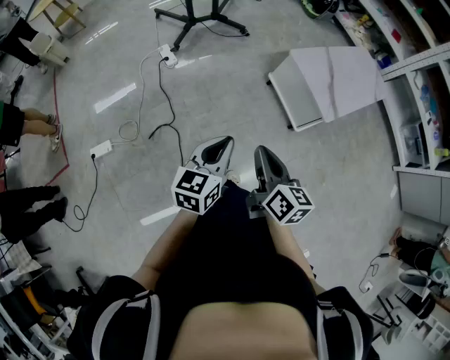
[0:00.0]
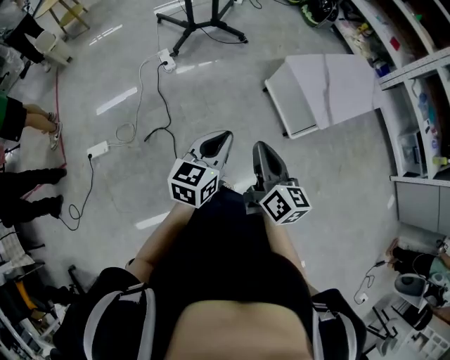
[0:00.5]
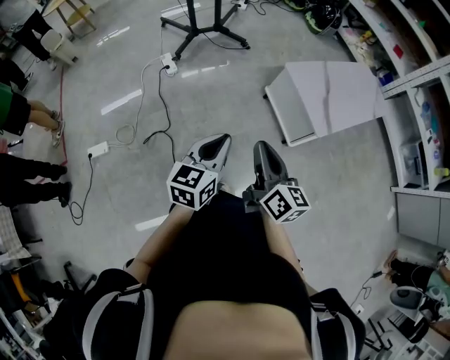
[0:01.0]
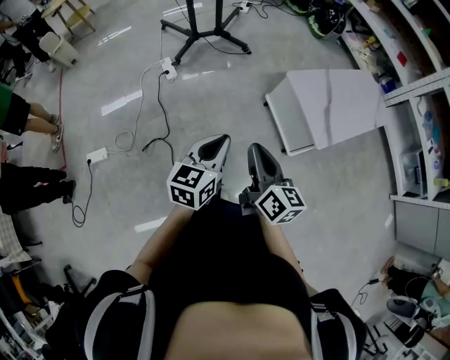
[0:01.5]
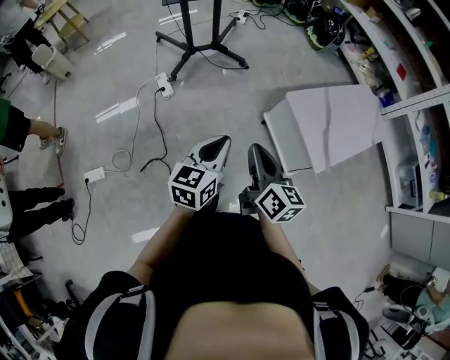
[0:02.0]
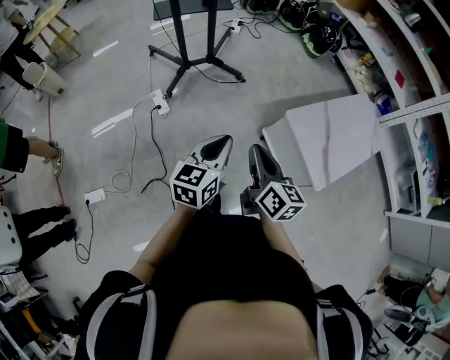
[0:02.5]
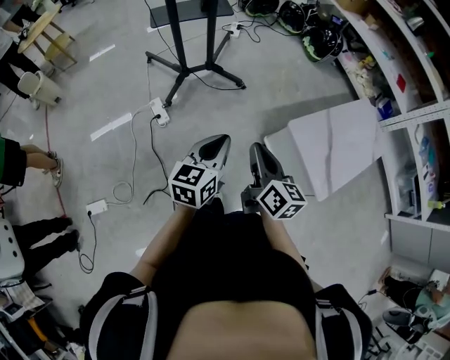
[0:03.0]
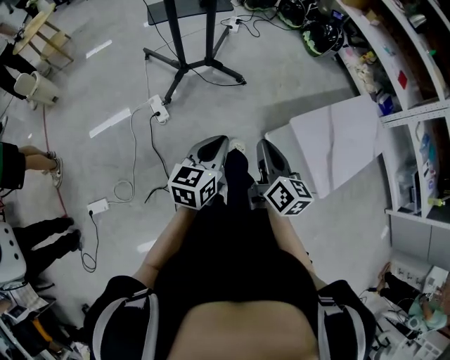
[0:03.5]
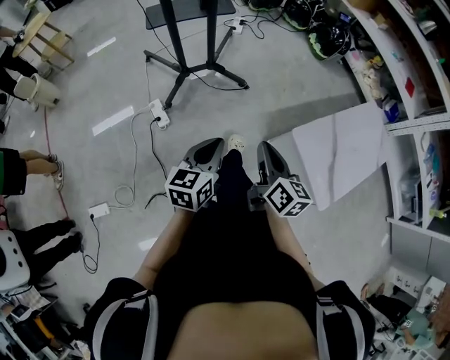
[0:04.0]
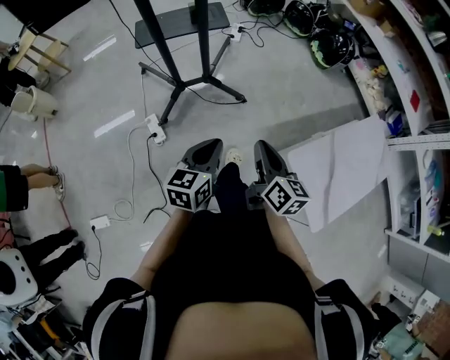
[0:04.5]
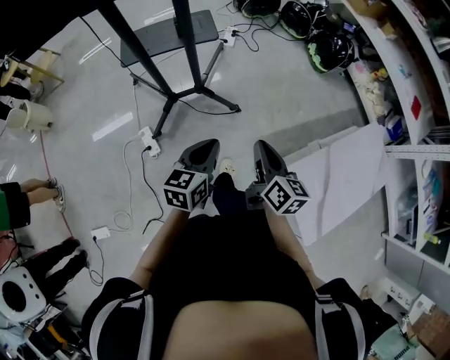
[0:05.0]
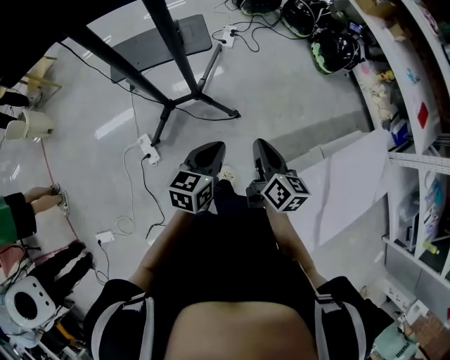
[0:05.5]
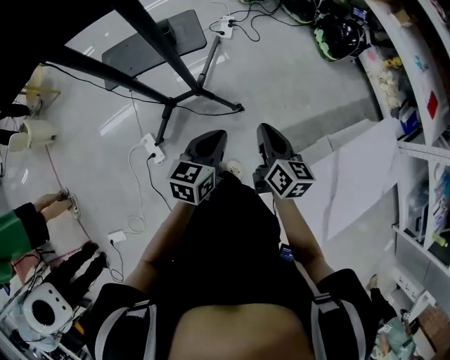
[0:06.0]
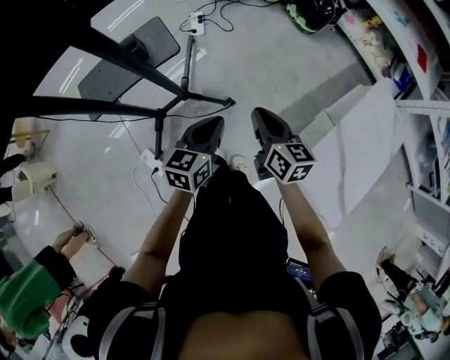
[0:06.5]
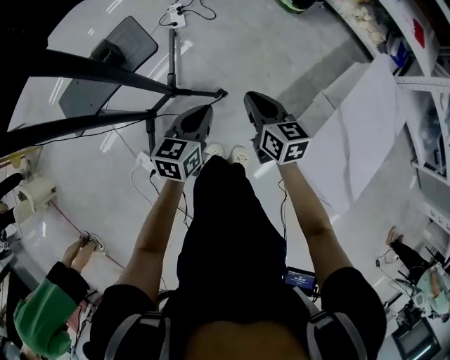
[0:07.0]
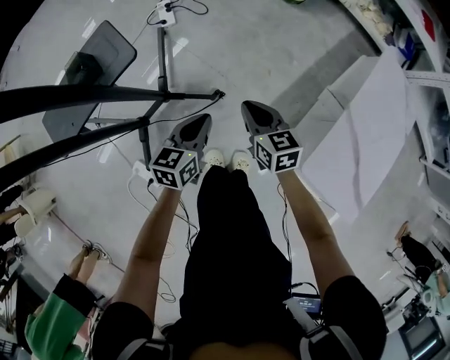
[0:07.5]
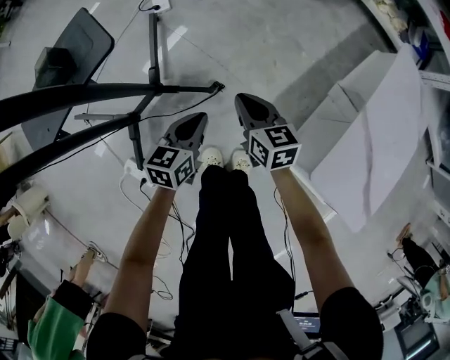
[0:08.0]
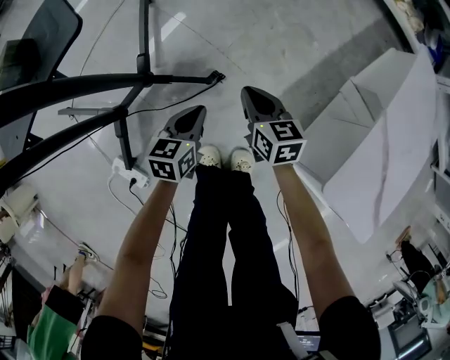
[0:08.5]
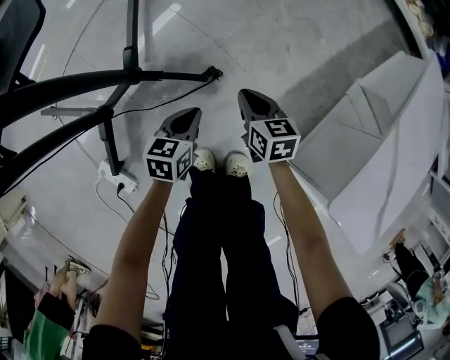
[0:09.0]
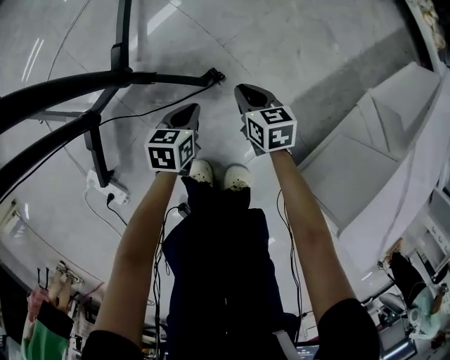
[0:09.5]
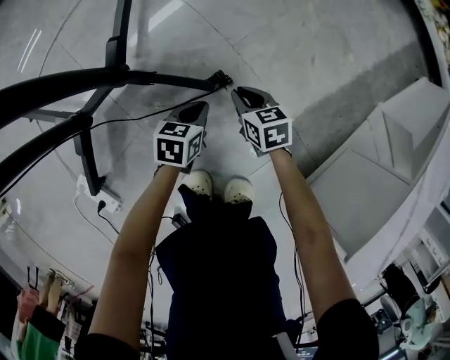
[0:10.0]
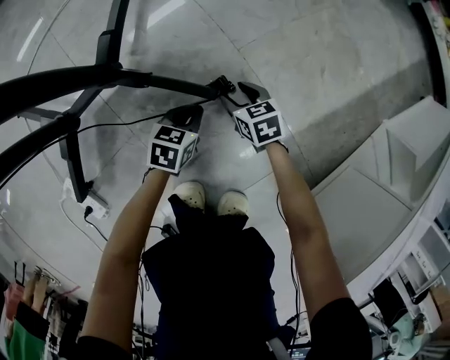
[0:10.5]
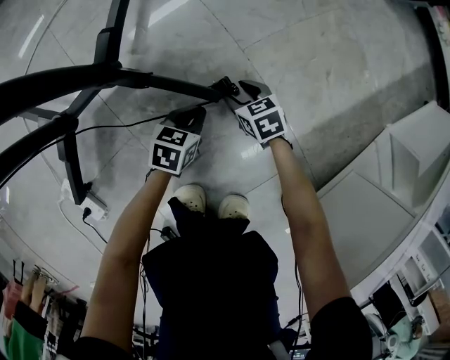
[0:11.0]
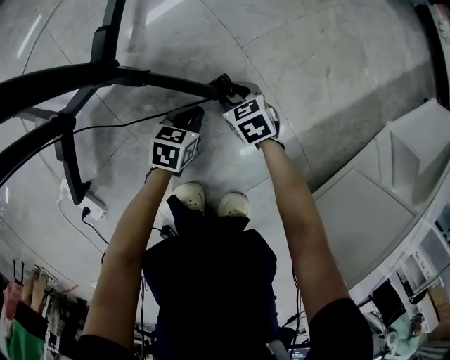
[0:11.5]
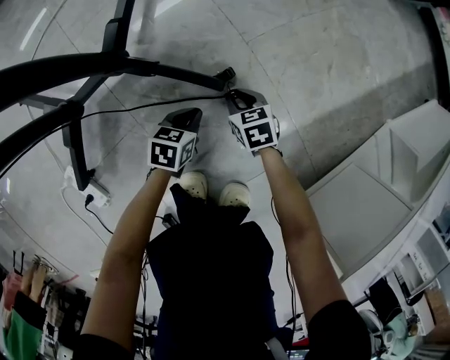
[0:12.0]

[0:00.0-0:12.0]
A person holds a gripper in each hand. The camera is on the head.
0:00.0 to 0:02.0: The two grippers go some 20 cm forward.
0:02.0 to 0:04.0: Both grippers move forward, roughly 25 cm.
0:04.0 to 0:06.0: The two grippers travel together, forward, approximately 40 cm.
0:06.0 to 0:08.0: Both grippers move downward, about 30 cm. The left gripper swivels approximately 20 degrees.
0:08.0 to 0:10.0: The two grippers go roughly 40 cm downward. The right gripper swivels about 20 degrees.
0:10.0 to 0:12.0: Both grippers move downward, some 5 cm. The right gripper opens, then closes once more.

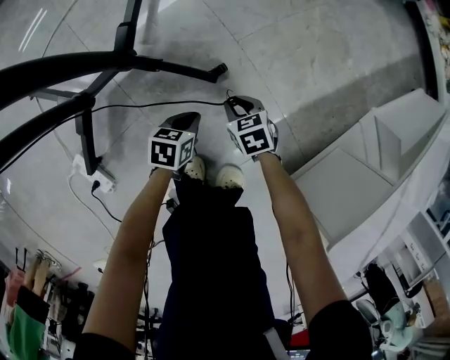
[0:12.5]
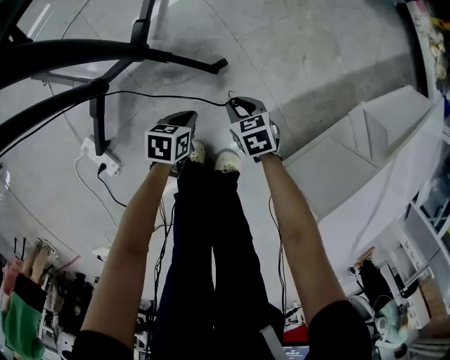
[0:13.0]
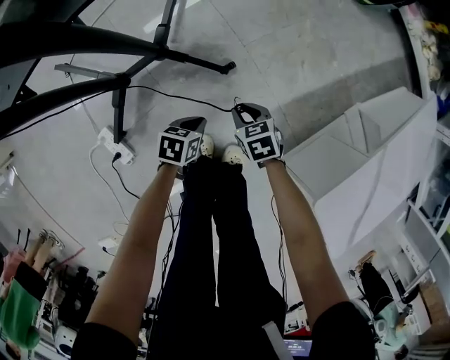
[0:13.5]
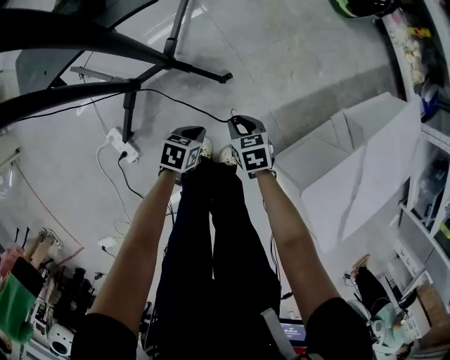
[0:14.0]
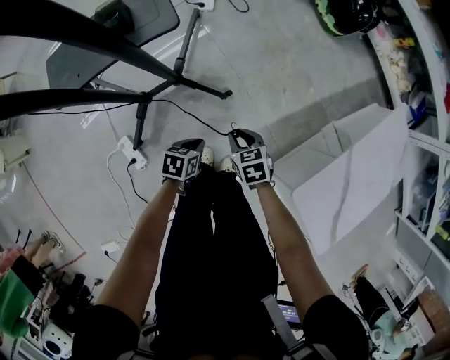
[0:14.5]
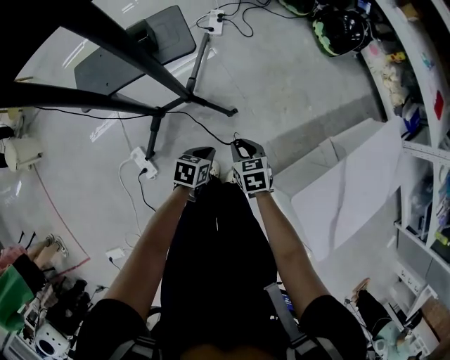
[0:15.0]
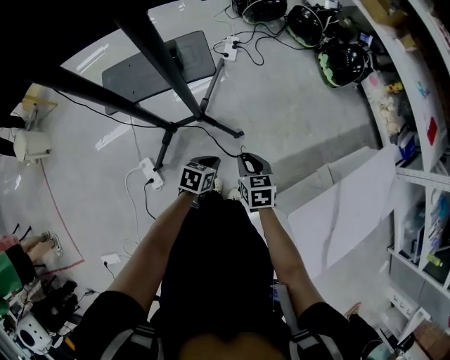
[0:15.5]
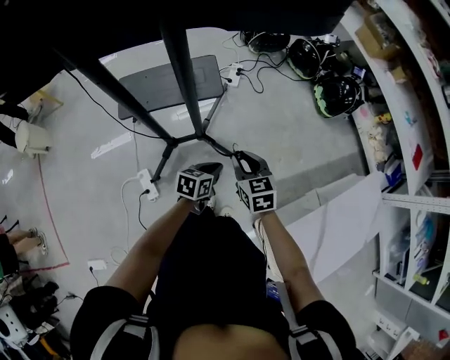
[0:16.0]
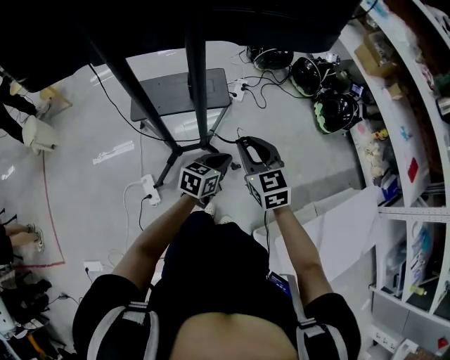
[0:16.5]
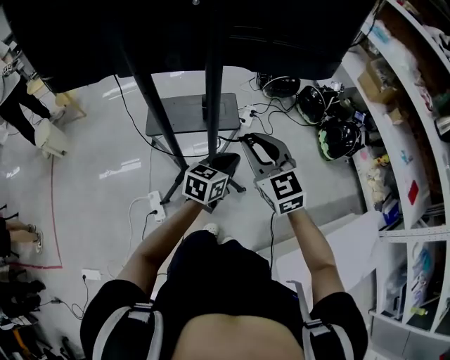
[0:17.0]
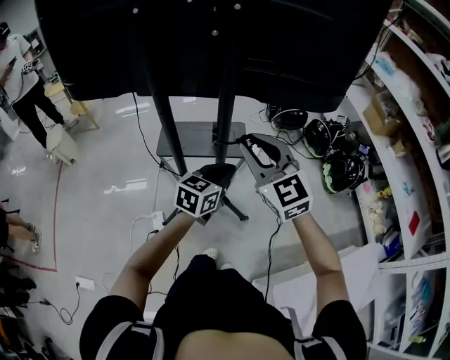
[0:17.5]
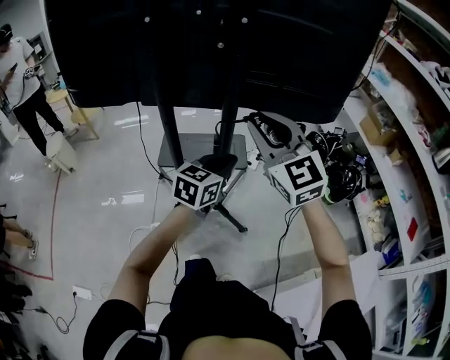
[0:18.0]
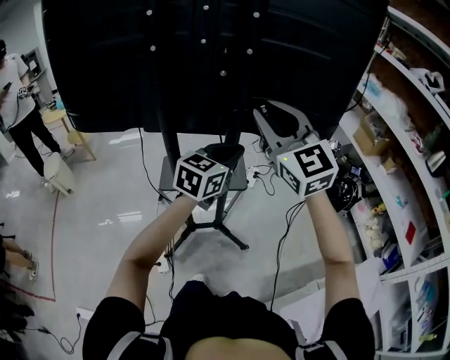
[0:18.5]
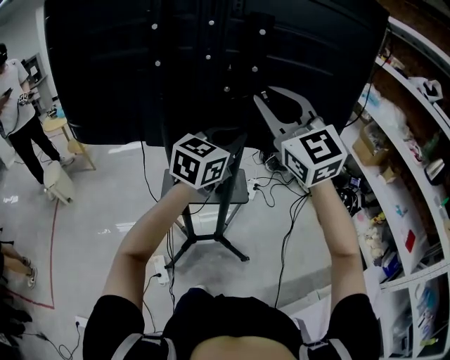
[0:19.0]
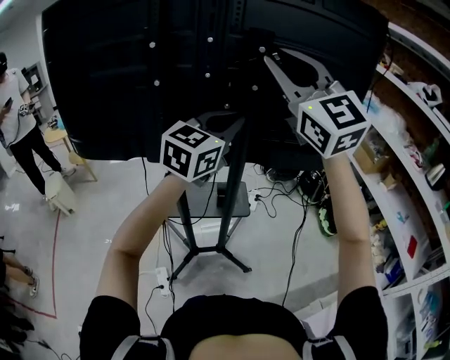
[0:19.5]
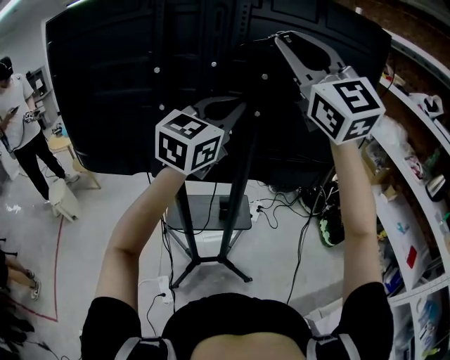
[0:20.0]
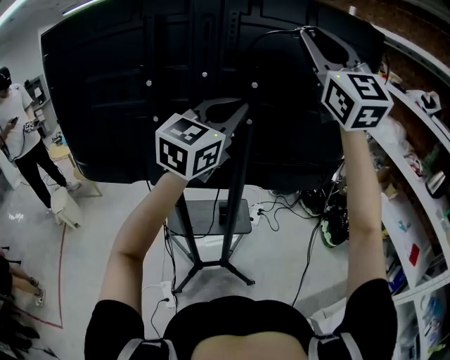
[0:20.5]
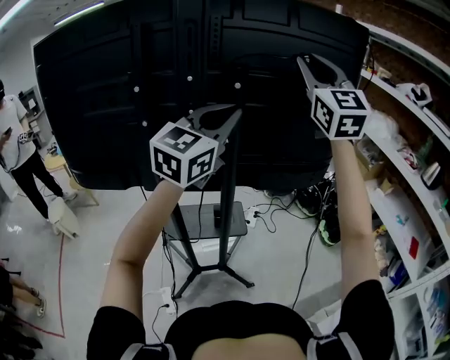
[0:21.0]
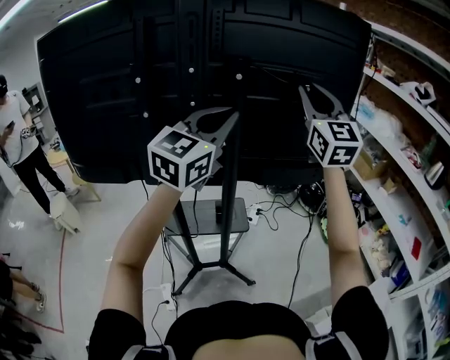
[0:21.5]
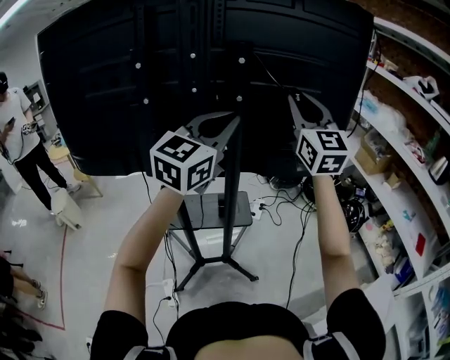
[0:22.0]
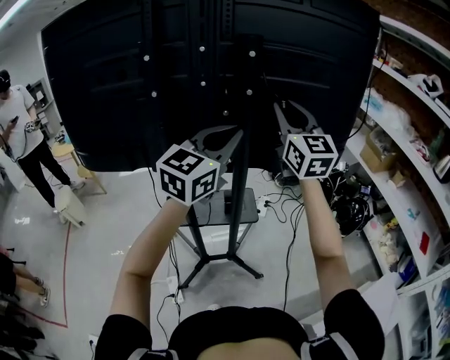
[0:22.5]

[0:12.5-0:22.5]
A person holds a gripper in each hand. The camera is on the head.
0:12.5 to 0:14.5: The grippers both shift upward by approximately 35 cm.
0:14.5 to 0:16.5: The two grippers go approximately 35 cm upward. The right gripper tips its fingers upward by approximately 30 degrees; the left gripper swivels approximately 30 degrees.
0:16.5 to 0:18.5: The two grippers go approximately 35 cm upward. The right gripper swivels some 40 degrees. Meanwhile the left gripper turns by about 30 degrees.
0:18.5 to 0:20.5: The grippers both shift upward by roughly 30 cm. The right gripper swivels roughly 20 degrees, while the left gripper swivels roughly 30 degrees.
0:20.5 to 0:22.5: The left gripper moves downward, approximately 10 cm. The right gripper is displaced downward by roughly 25 cm, and swivels about 20 degrees.

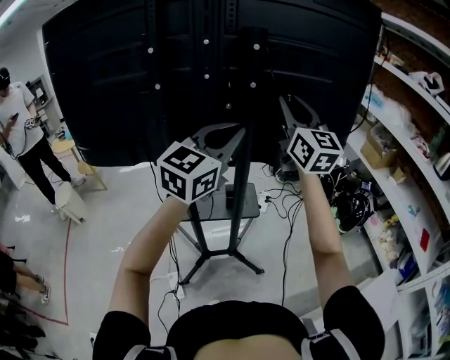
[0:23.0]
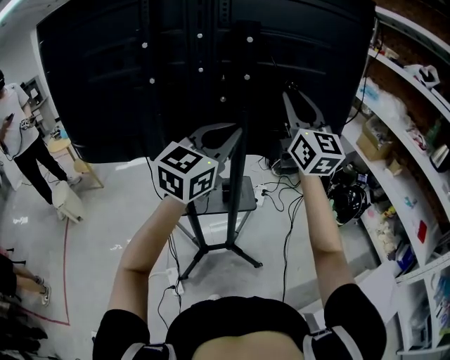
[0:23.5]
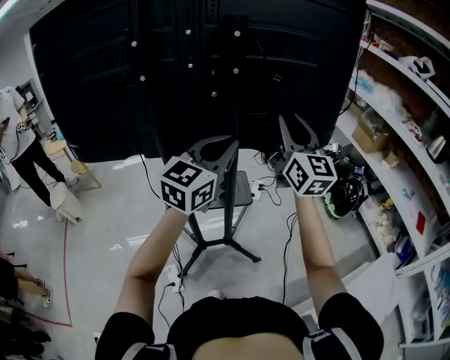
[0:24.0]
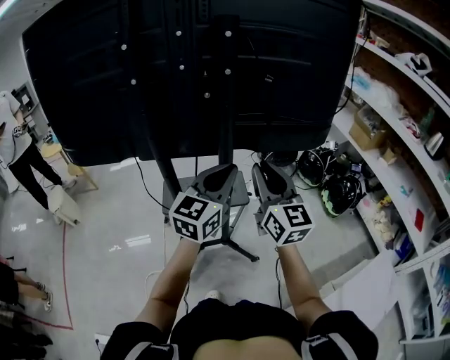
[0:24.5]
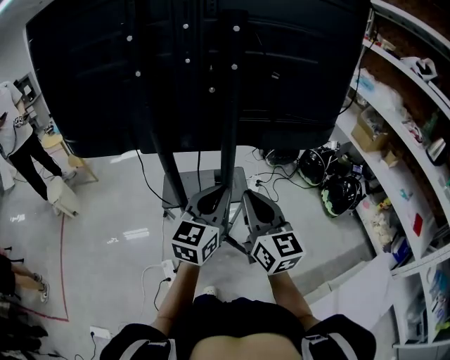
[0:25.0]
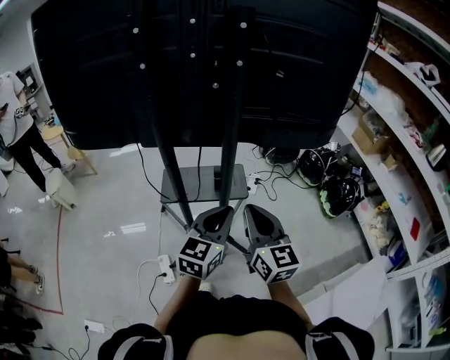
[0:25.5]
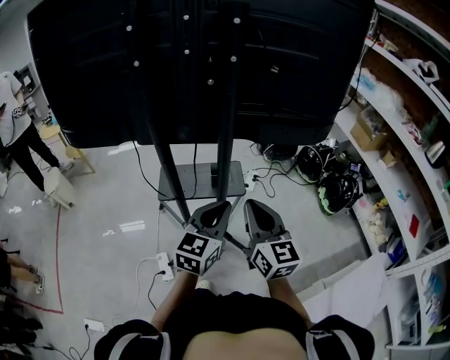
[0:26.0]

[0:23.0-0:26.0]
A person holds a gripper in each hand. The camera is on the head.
0:23.0 to 0:24.5: The right gripper heads downward and backward, covering about 20 cm, while the left gripper is displaced downward by some 10 cm.
0:24.5 to 0:26.0: The two grippers go about 10 cm downward and backward.

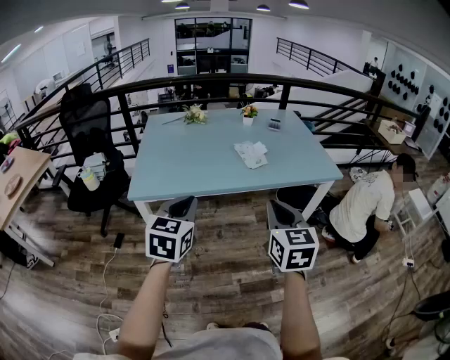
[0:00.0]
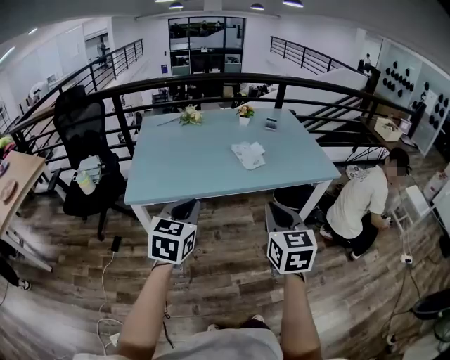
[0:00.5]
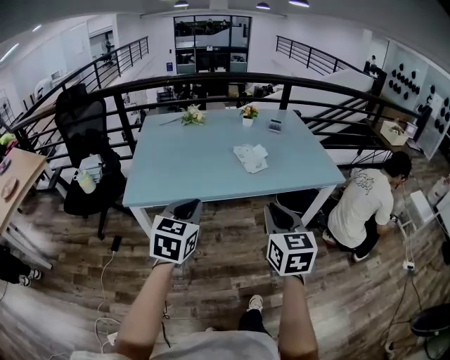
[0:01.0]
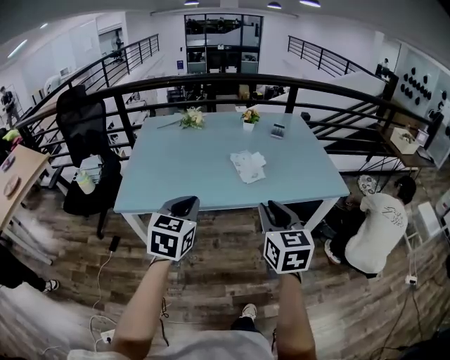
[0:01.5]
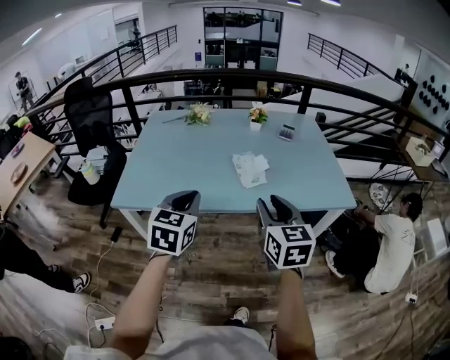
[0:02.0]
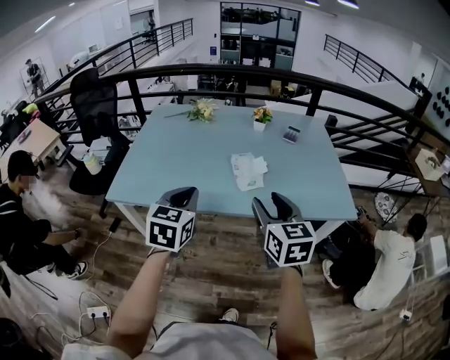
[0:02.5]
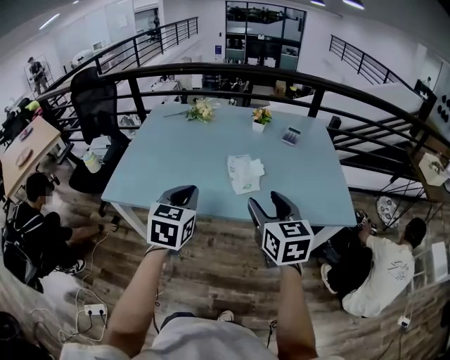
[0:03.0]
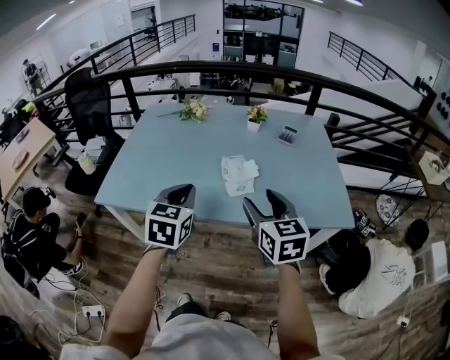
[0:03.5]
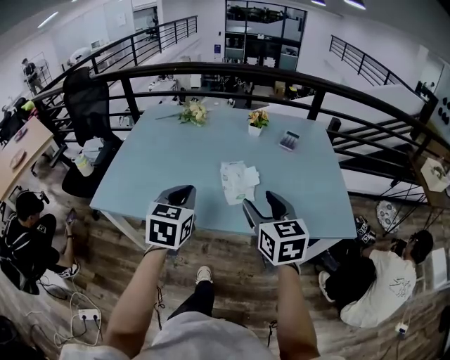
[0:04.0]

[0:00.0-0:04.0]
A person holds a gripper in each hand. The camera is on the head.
0:00.0 to 0:02.0: The left gripper goes roughly 20 cm forward and to the right; the right gripper goes some 20 cm forward, and opens up.
0:02.0 to 0:04.0: Both grippers move forward and to the right, about 15 cm. The right gripper opens up.
